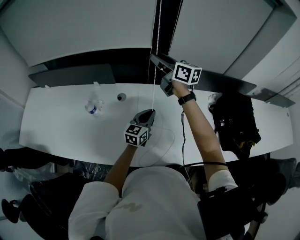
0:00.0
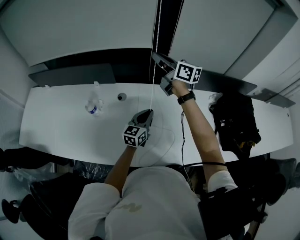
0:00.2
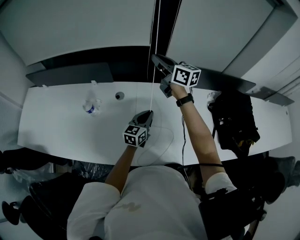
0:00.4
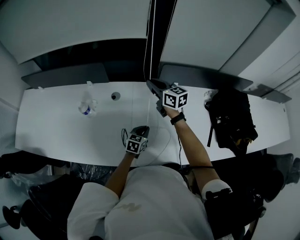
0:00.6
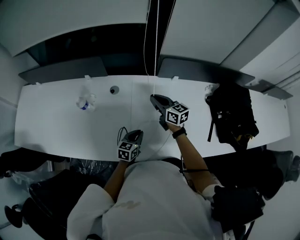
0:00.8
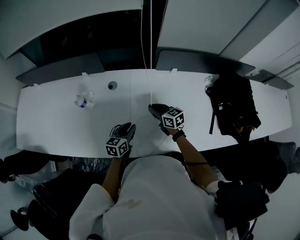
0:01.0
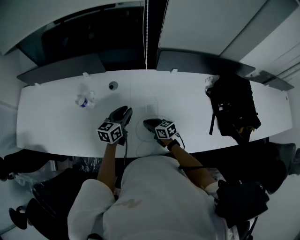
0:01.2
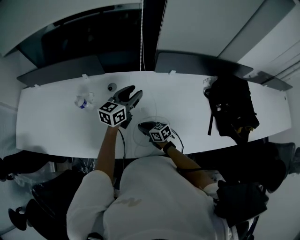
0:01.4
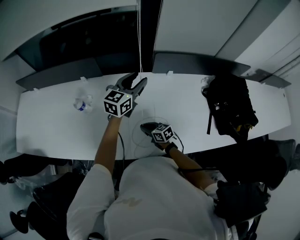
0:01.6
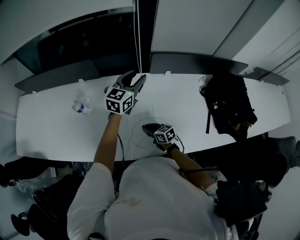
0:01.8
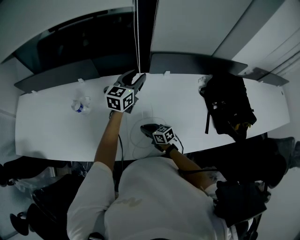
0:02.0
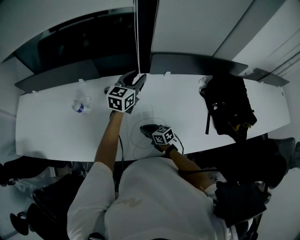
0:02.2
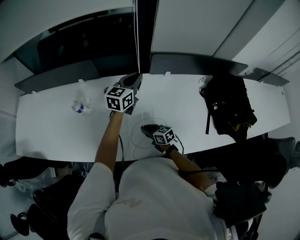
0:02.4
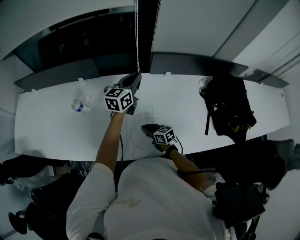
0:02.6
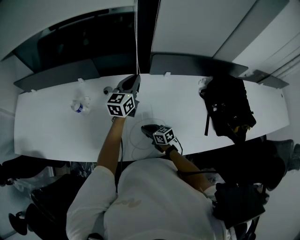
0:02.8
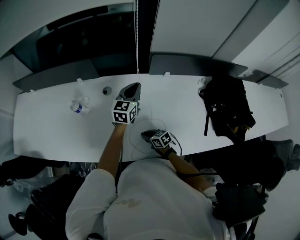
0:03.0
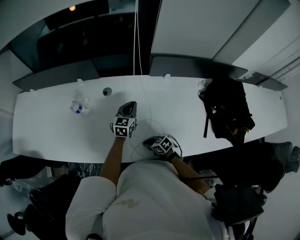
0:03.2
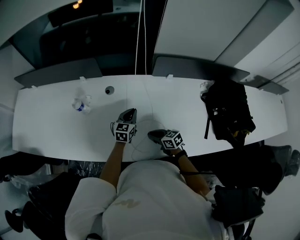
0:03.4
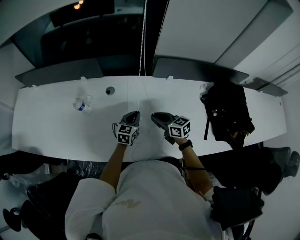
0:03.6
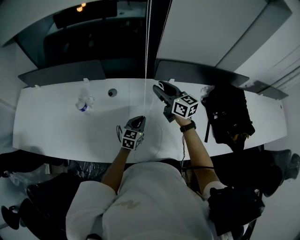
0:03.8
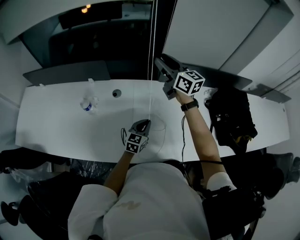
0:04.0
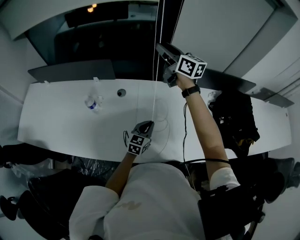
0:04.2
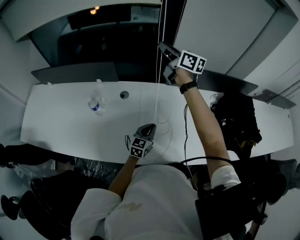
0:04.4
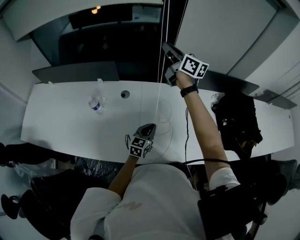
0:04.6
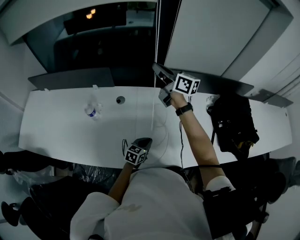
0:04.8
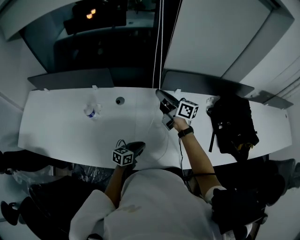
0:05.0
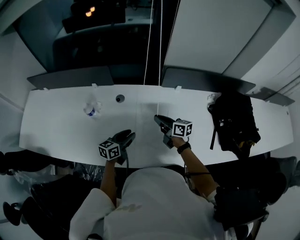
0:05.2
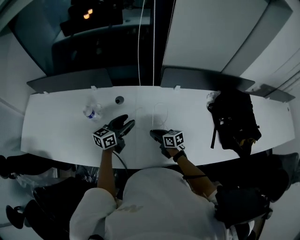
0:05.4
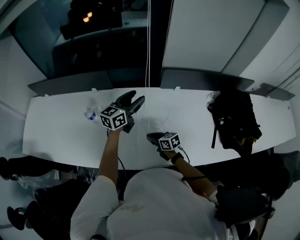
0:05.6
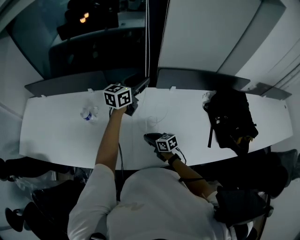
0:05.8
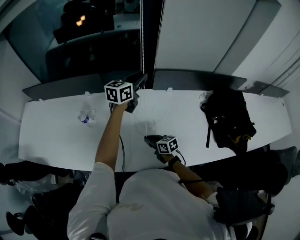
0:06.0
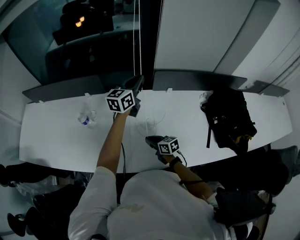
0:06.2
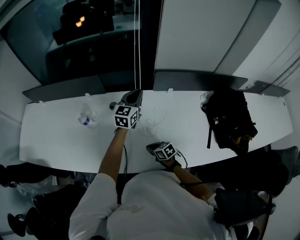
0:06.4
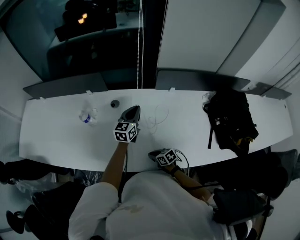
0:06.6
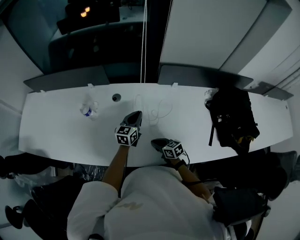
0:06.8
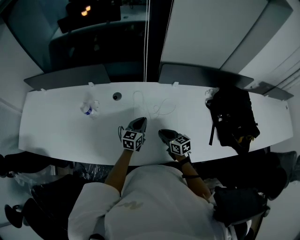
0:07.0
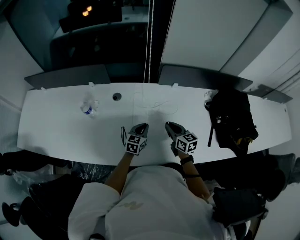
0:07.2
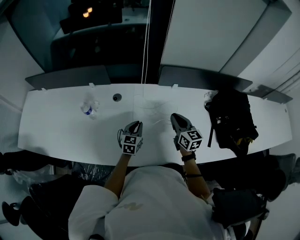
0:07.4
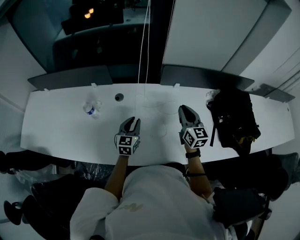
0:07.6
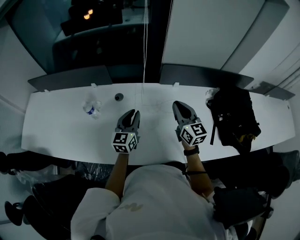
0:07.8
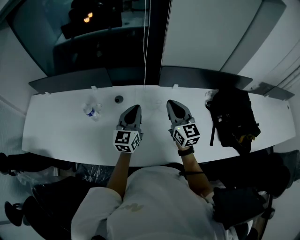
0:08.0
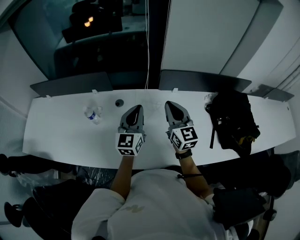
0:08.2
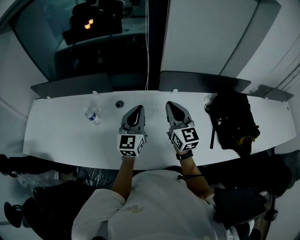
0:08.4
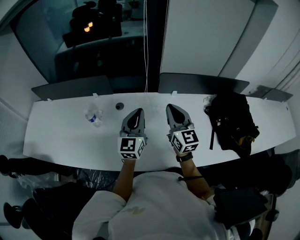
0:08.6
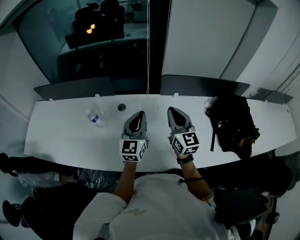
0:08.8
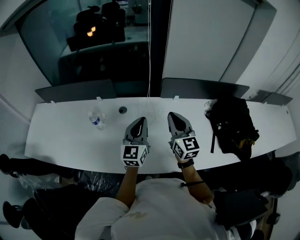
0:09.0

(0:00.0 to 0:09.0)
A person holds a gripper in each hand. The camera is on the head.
0:00.0 - 0:01.6: The left gripper shifts roughly 15 cm upward and forward, and opens up. The right gripper moves downward and backward, about 50 cm, tilts its fingers approximately 30 degrees downward, and closes.
0:01.6 - 0:03.0: The right gripper changes place by some 5 cm; the left gripper goes roughly 5 cm downward, and closes.
0:03.0 - 0:04.4: The left gripper moves backward and downward, some 20 cm. Meanwhile the right gripper heads upward and forward, covering about 60 cm, tips its fingers upward by about 40 degrees, and opens and closes again.
0:04.4 - 0:06.0: The right gripper goes roughly 50 cm downward and backward, and tilts its fingers roughly 30 degrees downward; the left gripper heads upward and forward, covering about 30 cm.
0:06.0 - 0:07.6: The right gripper travels upward and to the right by some 25 cm, and changes its angle by roughly 50 degrees. The left gripper is displaced downward, backward and to the left by approximately 25 cm, and rotates roughly 30 degrees.
0:07.6 - 0:09.0: The right gripper travels upward, to the left and backward by roughly 15 cm. The left gripper moves upward, approximately 20 cm, and rotates some 20 degrees.

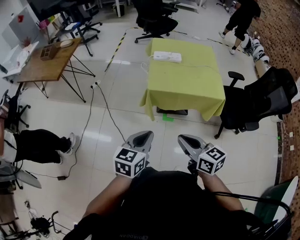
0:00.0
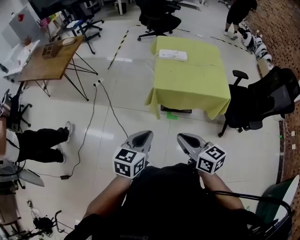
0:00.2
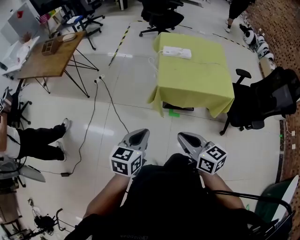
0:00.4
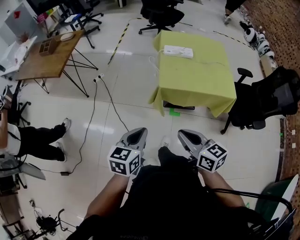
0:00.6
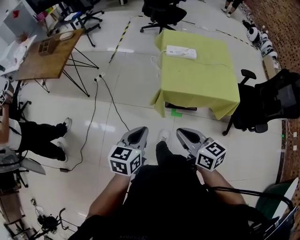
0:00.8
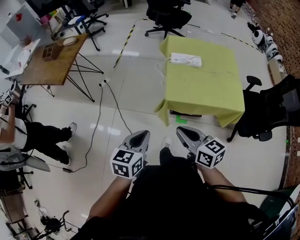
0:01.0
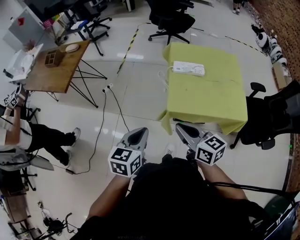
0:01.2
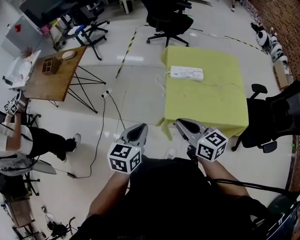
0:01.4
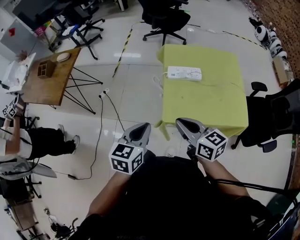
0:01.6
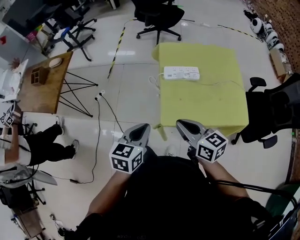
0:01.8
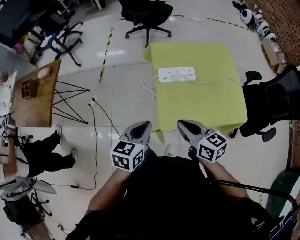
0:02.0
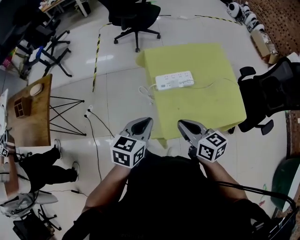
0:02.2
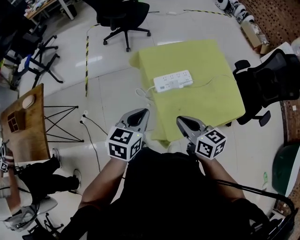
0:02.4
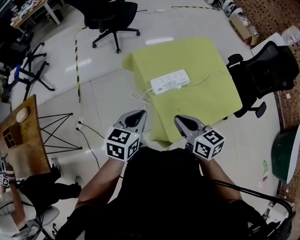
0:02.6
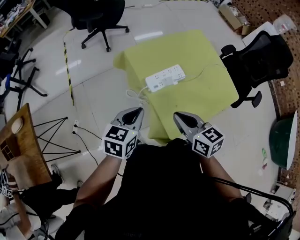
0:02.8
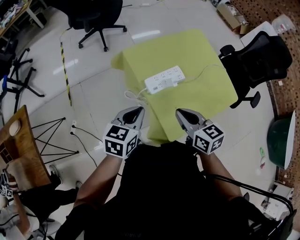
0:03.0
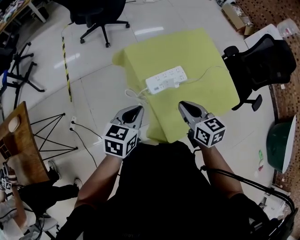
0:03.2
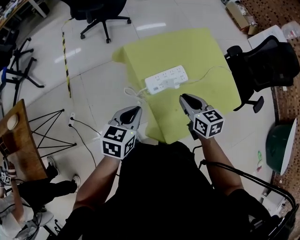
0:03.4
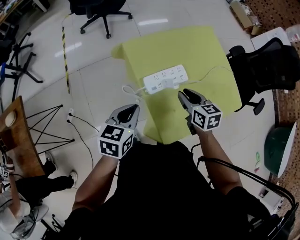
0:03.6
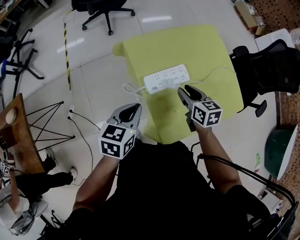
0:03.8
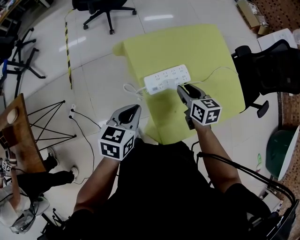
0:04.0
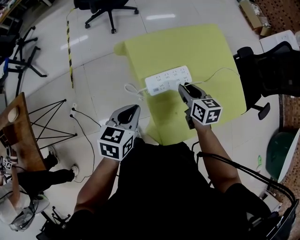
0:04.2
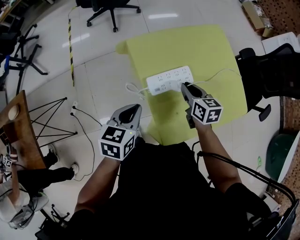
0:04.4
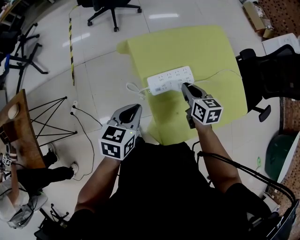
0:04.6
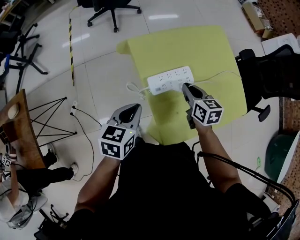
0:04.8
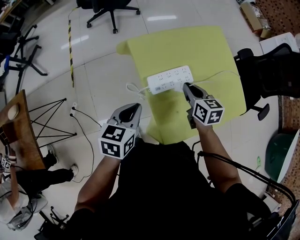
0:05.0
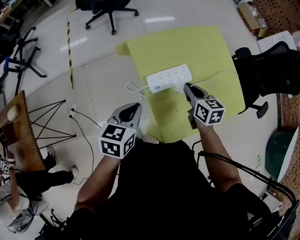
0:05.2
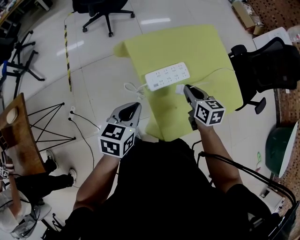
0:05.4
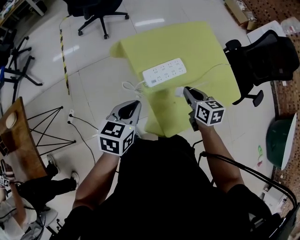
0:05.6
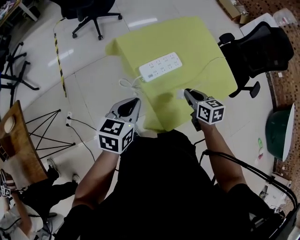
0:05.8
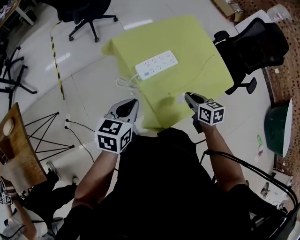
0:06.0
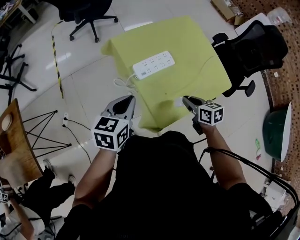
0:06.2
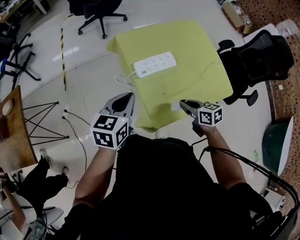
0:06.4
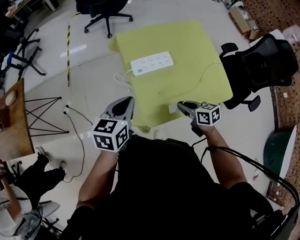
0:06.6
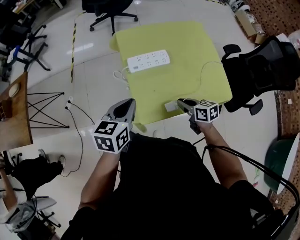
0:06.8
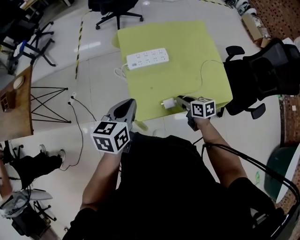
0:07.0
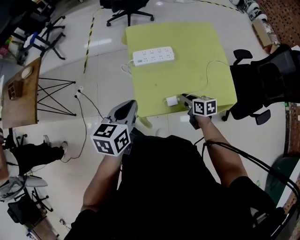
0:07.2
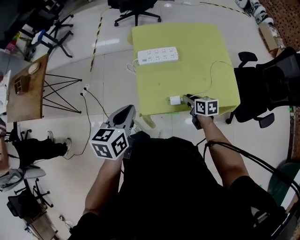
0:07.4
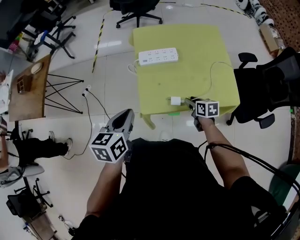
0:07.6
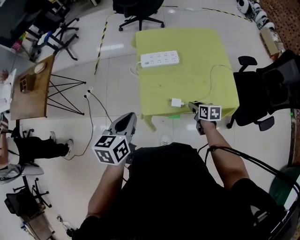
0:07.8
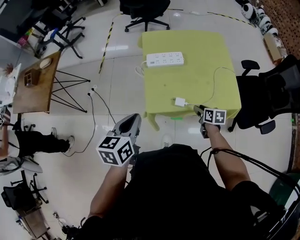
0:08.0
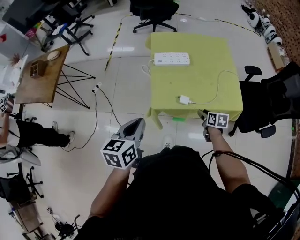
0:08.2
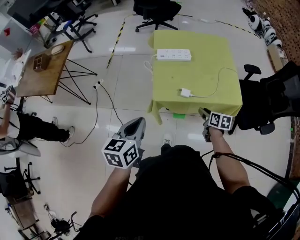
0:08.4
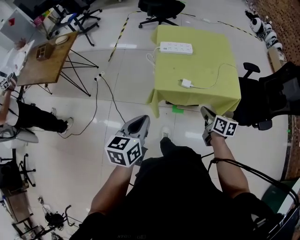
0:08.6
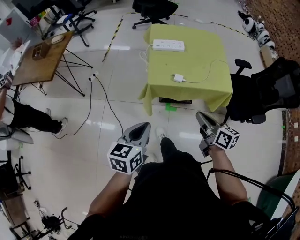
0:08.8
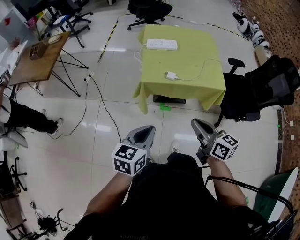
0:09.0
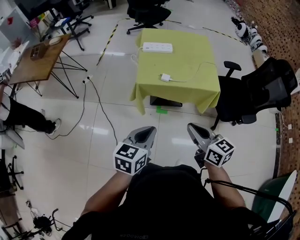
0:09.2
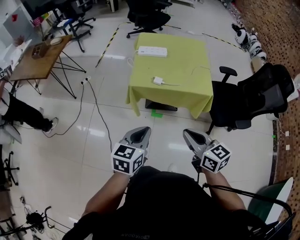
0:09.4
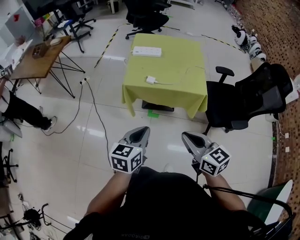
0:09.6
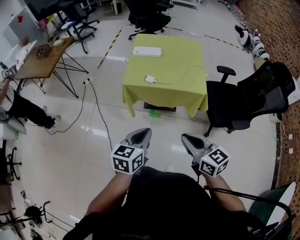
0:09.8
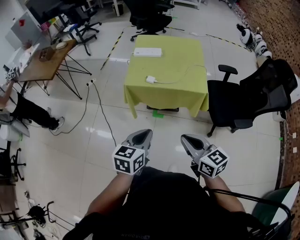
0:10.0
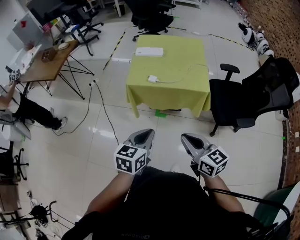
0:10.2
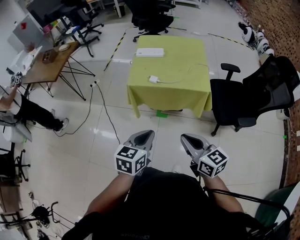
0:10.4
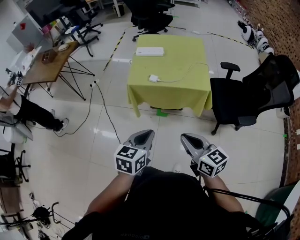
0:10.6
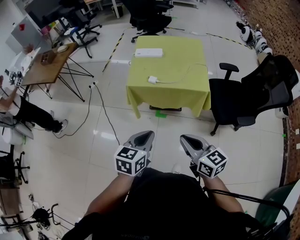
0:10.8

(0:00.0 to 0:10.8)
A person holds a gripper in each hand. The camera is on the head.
0:00.0 - 0:01.6: Both grippers move forward, some 30 cm.
0:01.6 - 0:03.0: The right gripper changes place by about 20 cm, and rotates approximately 40 degrees. Meanwhile the left gripper changes place by some 30 cm, and changes its angle by roughly 40 degrees.
0:03.0 - 0:04.6: The right gripper travels forward and downward by approximately 20 cm, and opens, then closes once more. Meanwhile the left gripper ends up about 5 cm from where it was.
0:04.6 - 0:06.2: The left gripper moves backward, about 5 cm. The right gripper shifts about 20 cm backward and to the right.
0:06.2 - 0:07.8: The left gripper ends up roughly 20 cm from where it was, and rotates about 30 degrees. Meanwhile the right gripper shifts by approximately 15 cm, and opens.
0:07.8 - 0:09.2: The left gripper goes some 30 cm backward. The right gripper travels backward and upward by roughly 40 cm, turns by approximately 40 degrees, and closes.
0:09.2 - 0:10.8: Both grippers move to the right and backward, about 15 cm.

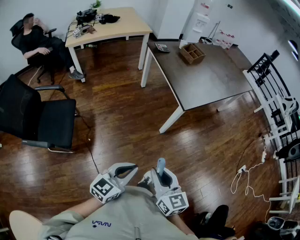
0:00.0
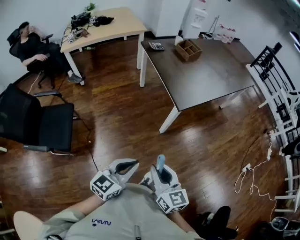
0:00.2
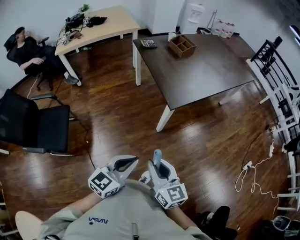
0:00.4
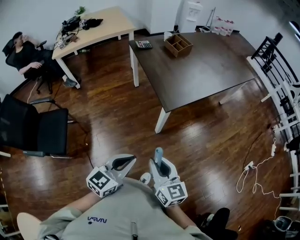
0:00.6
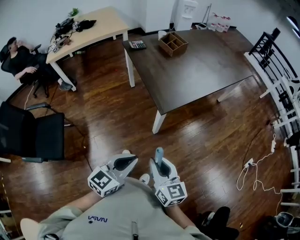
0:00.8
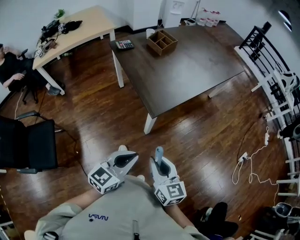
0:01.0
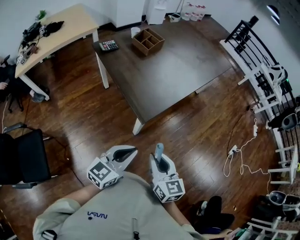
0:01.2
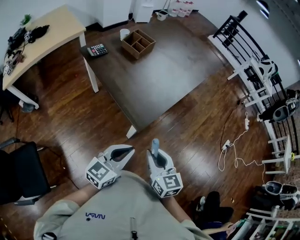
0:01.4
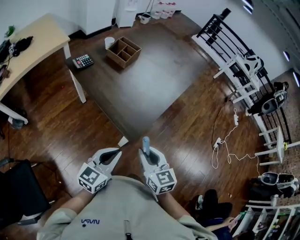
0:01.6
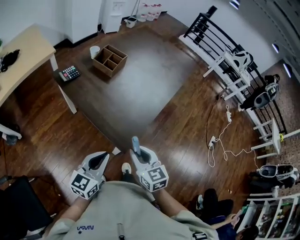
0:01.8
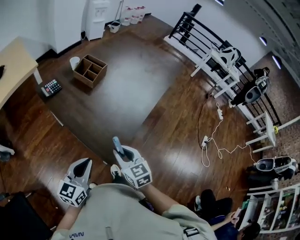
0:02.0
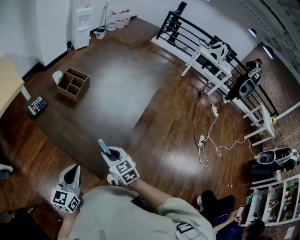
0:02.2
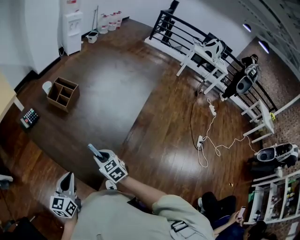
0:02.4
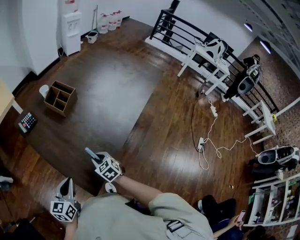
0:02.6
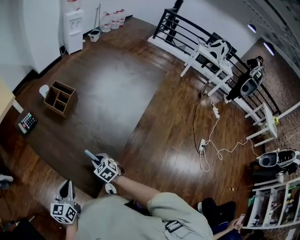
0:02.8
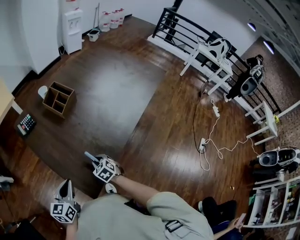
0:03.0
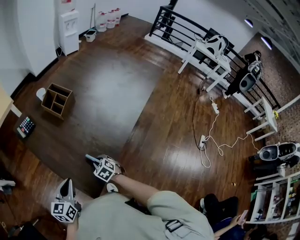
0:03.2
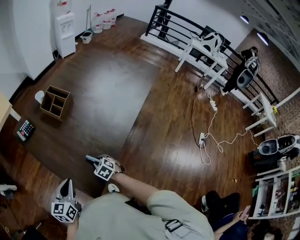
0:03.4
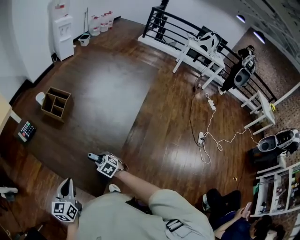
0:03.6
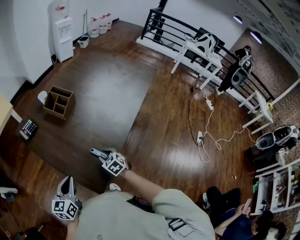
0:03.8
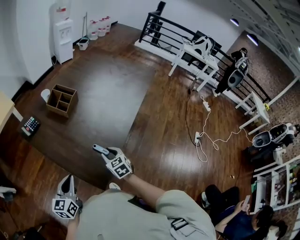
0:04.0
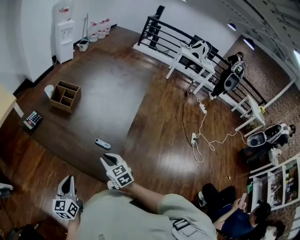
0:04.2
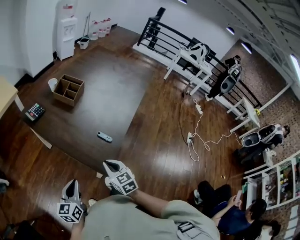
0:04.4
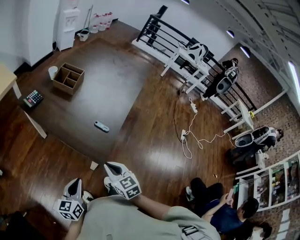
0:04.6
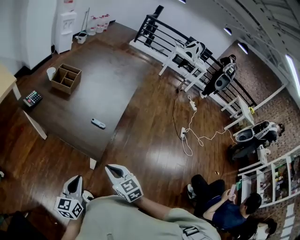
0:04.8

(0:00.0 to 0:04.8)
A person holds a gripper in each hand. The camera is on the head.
0:00.0 - 0:01.6: The grippers both shift forward by about 35 cm. The right gripper turns by roughly 20 degrees.
0:01.6 - 0:03.2: The right gripper moves forward and downward, roughly 30 cm, and angles its fingers downward, by about 30 degrees. The left gripper moves forward, roughly 15 cm, and swivels some 20 degrees.
0:03.2 - 0:04.8: The right gripper is displaced backward and upward by some 30 cm, and turns by approximately 40 degrees. The left gripper moves backward, approximately 15 cm.
